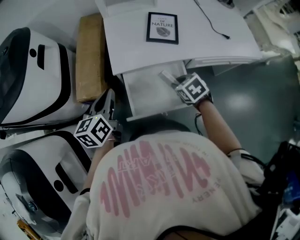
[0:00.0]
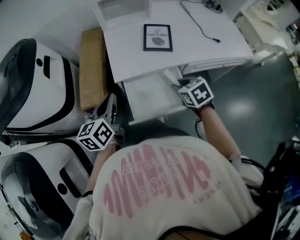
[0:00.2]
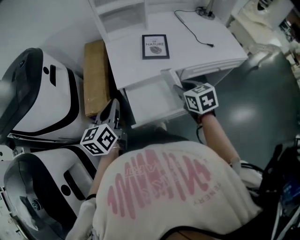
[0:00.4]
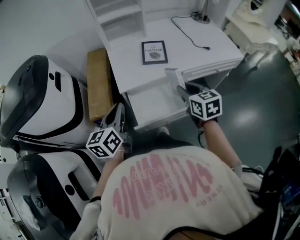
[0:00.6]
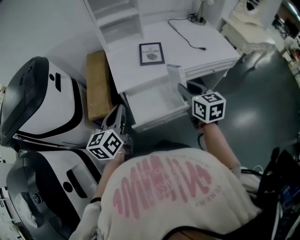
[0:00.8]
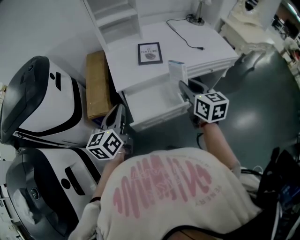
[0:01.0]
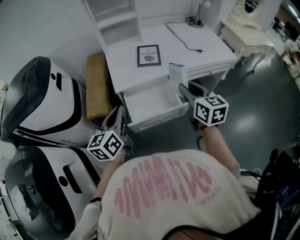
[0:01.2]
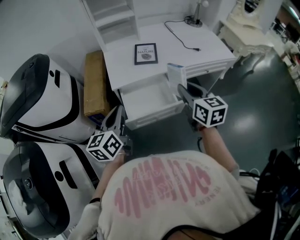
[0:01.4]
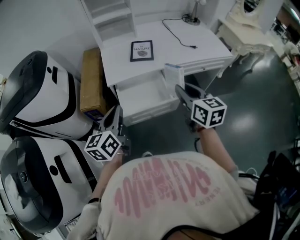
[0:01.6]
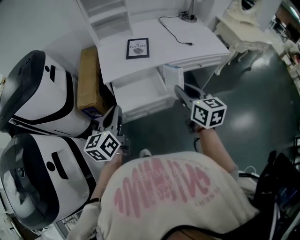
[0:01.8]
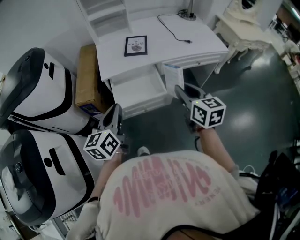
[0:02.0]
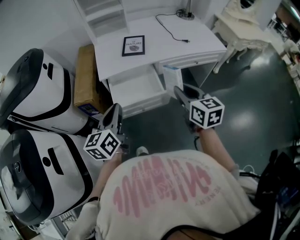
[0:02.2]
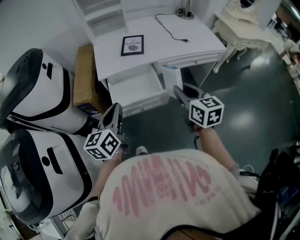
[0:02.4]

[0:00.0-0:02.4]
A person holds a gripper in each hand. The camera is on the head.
0:00.0 to 0:01.2: The left gripper heads backward, upward and to the right, covering about 15 cm, while the right gripper goes approximately 25 cm upward and backward, and tilts its fingers roughly 50 degrees upward.
0:01.2 to 0:02.4: The left gripper shifts about 10 cm to the right and backward. The right gripper travels backward and to the right by some 10 cm.

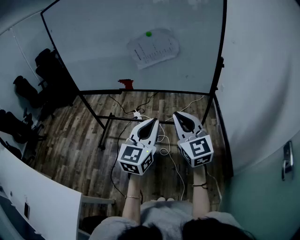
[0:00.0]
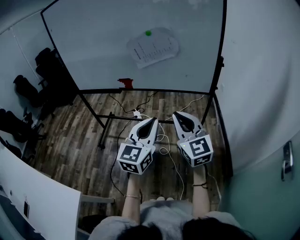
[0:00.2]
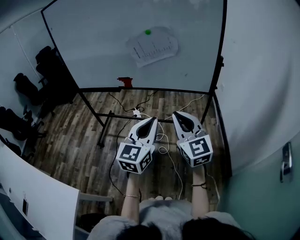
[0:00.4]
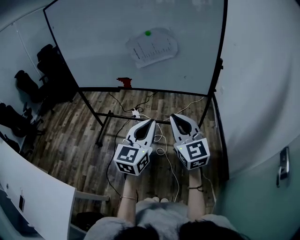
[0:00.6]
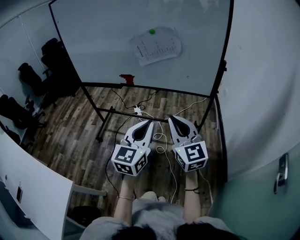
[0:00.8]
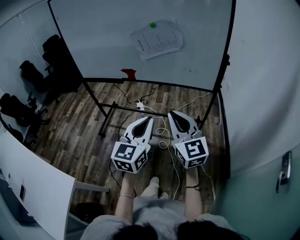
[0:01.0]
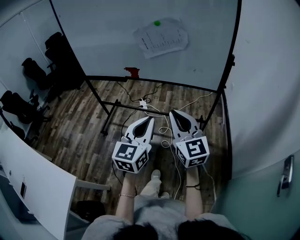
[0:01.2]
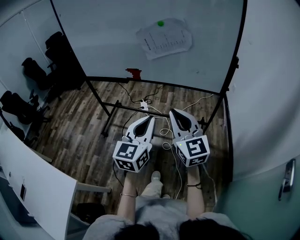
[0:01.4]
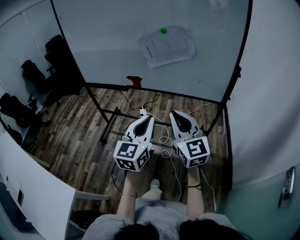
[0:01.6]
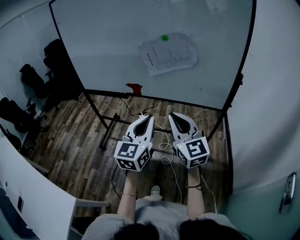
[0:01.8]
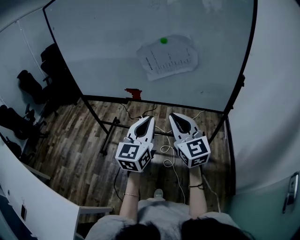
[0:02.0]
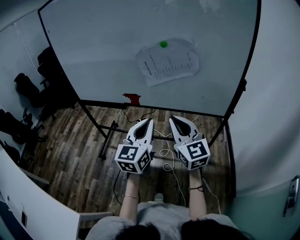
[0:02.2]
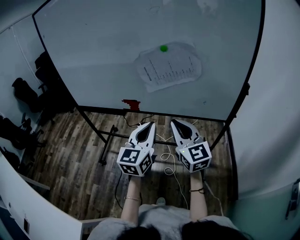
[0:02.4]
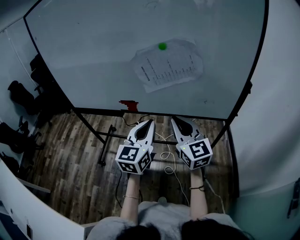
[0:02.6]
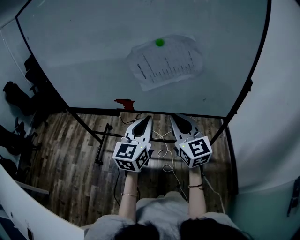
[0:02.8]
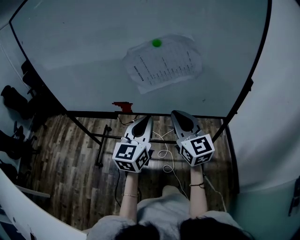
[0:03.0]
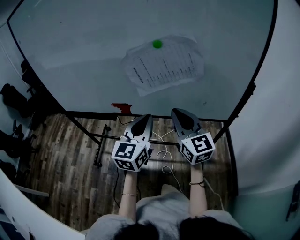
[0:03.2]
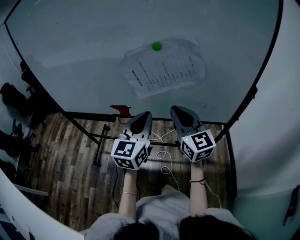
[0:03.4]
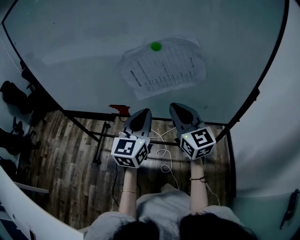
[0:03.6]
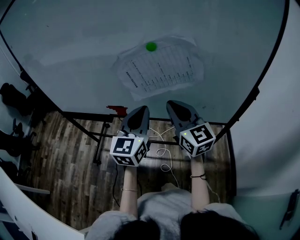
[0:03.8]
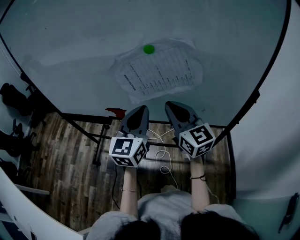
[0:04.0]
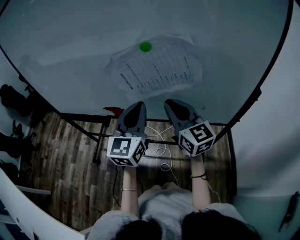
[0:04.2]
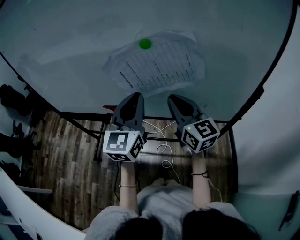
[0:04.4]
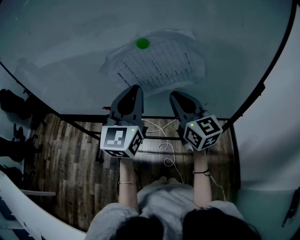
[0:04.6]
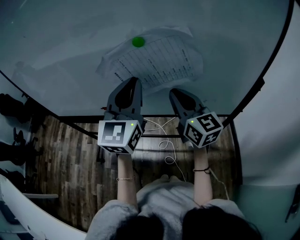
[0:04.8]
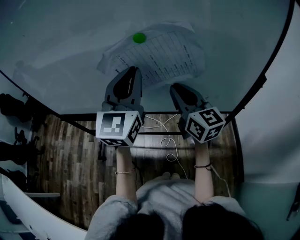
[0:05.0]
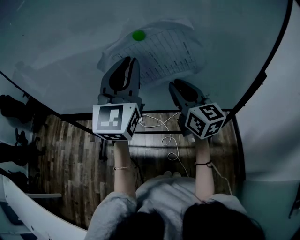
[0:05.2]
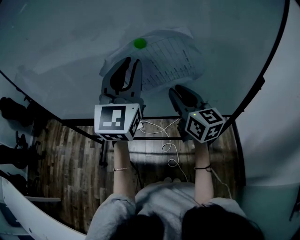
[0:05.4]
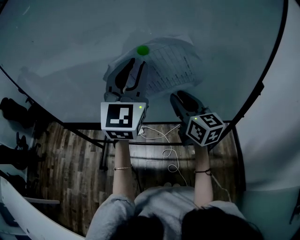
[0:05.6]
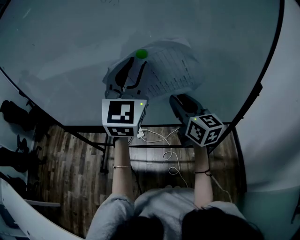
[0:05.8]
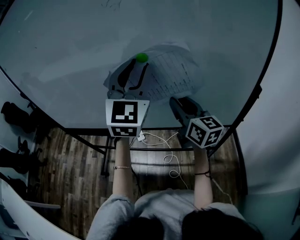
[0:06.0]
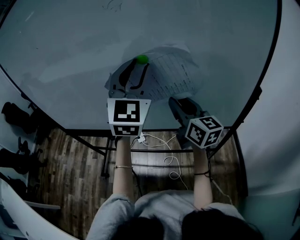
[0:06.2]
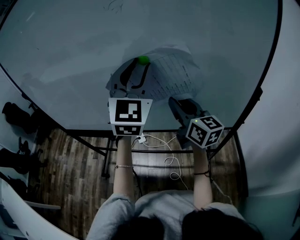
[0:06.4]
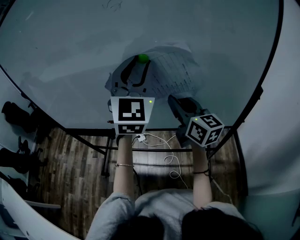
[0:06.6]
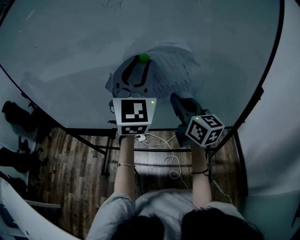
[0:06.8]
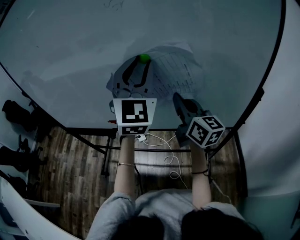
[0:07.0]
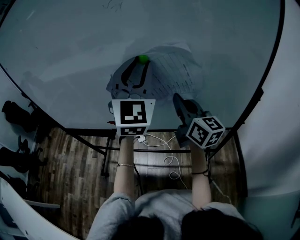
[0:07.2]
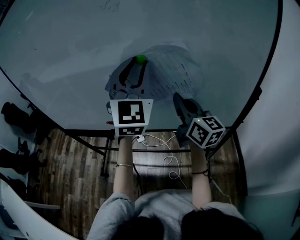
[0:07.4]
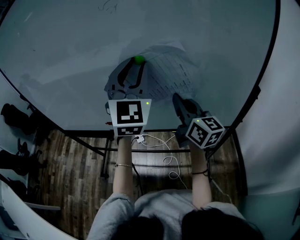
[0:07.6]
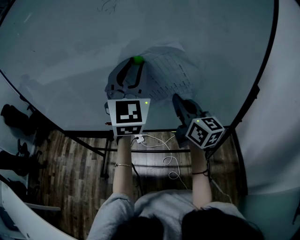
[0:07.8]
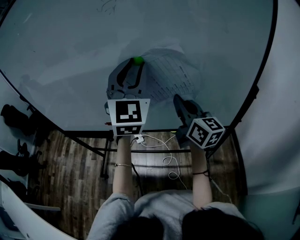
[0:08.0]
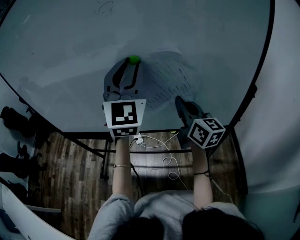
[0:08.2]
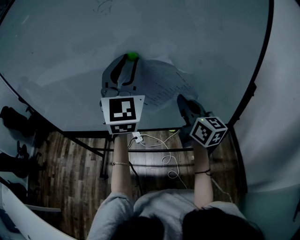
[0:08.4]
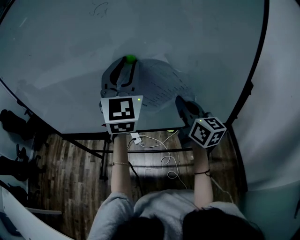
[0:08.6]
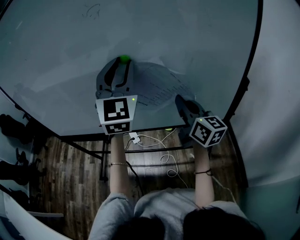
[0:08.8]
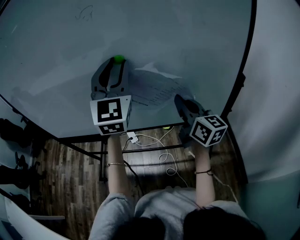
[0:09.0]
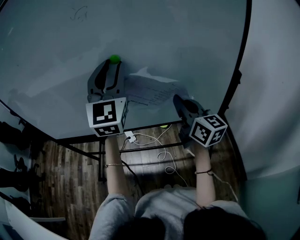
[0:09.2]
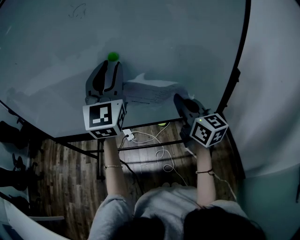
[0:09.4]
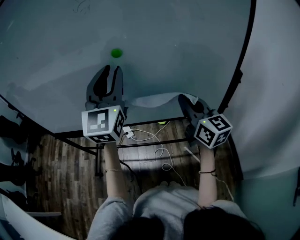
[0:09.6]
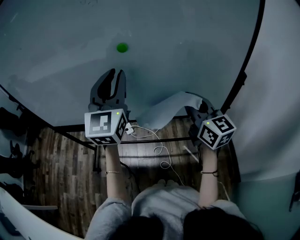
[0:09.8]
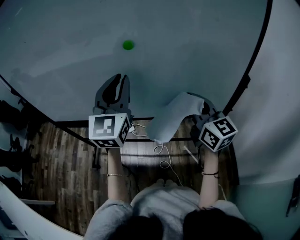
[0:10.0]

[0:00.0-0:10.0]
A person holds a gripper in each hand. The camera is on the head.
0:00.0 to 0:01.4: There are only small adjustments of the grippers.
0:01.4 to 0:02.8: The grippers both shift forward by some 25 cm.
0:02.8 to 0:04.2: Both grippers travel together forward, some 10 cm.
0:04.2 to 0:05.8: The right gripper moves approximately 5 cm, and opens up. Meanwhile the left gripper goes some 15 cm upward and forward, changes its angle by about 30 degrees, and opens up.
0:05.8 to 0:07.2: The right gripper closes up.
0:07.2 to 0:08.6: There are only small adjustments of the grippers.
0:08.6 to 0:10.0: The left gripper moves downward, about 10 cm; the right gripper moves backward, approximately 5 cm.

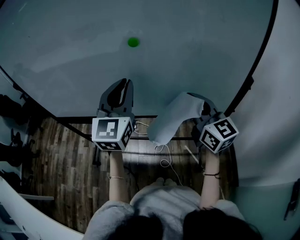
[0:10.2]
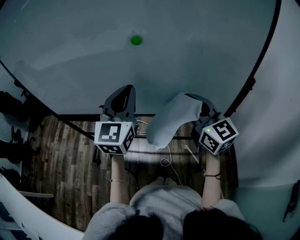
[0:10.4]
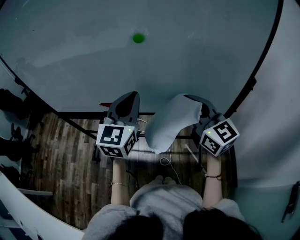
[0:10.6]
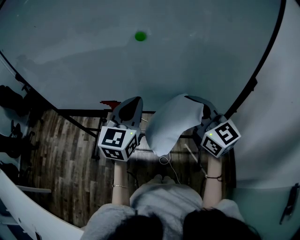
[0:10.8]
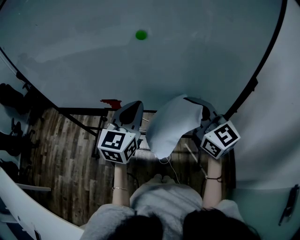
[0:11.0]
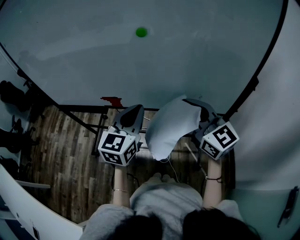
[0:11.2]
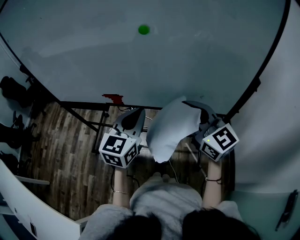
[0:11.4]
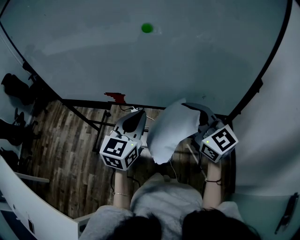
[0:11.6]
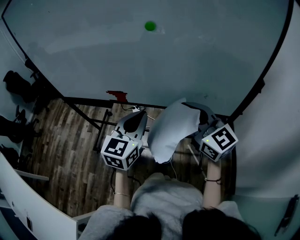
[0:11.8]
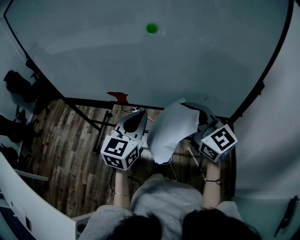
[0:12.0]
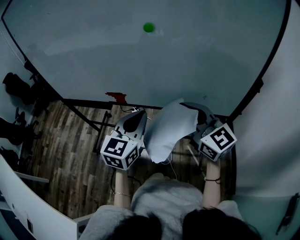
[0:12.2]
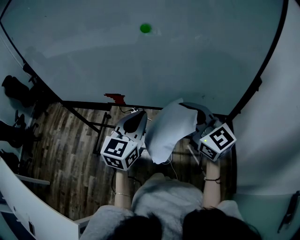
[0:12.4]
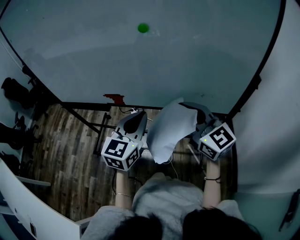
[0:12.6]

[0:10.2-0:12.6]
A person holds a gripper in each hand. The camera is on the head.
0:10.2 to 0:11.4: The right gripper moves backward, about 5 cm, while the left gripper heads downward and backward, covering approximately 15 cm.
0:11.4 to 0:12.6: The grippers move only a little.

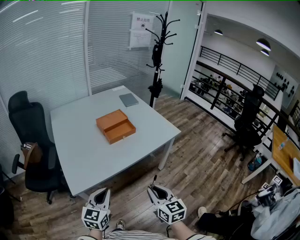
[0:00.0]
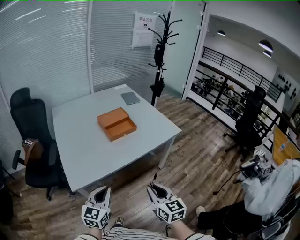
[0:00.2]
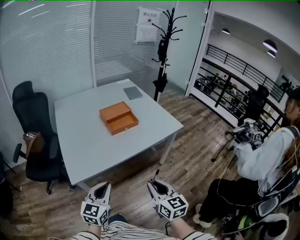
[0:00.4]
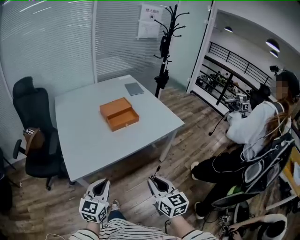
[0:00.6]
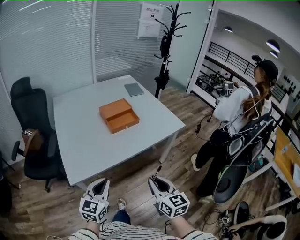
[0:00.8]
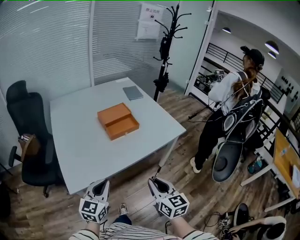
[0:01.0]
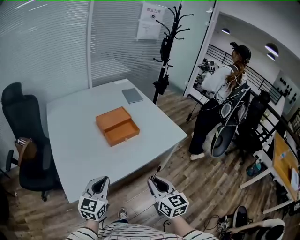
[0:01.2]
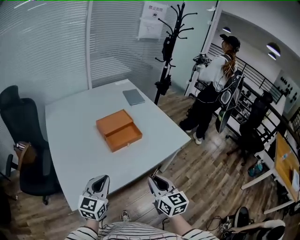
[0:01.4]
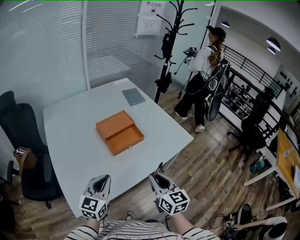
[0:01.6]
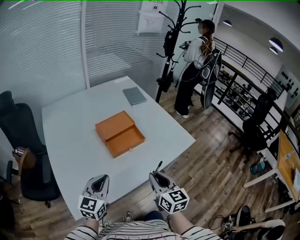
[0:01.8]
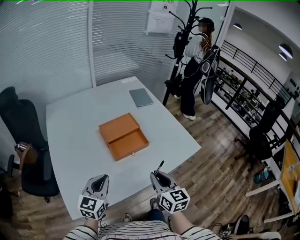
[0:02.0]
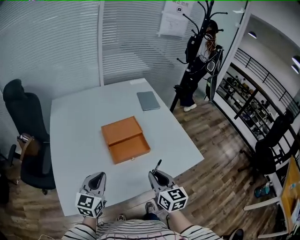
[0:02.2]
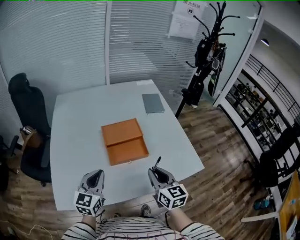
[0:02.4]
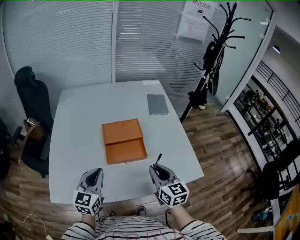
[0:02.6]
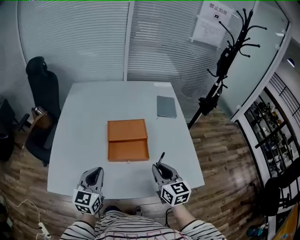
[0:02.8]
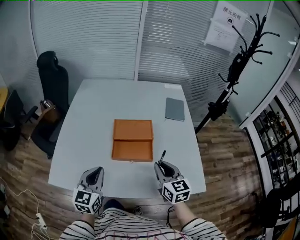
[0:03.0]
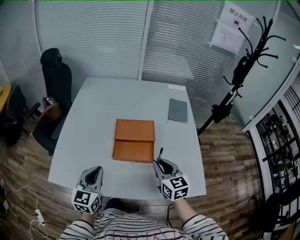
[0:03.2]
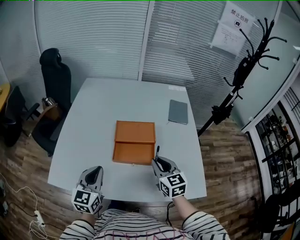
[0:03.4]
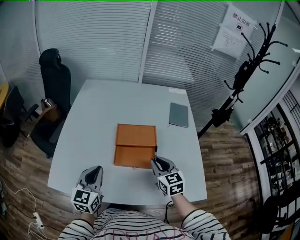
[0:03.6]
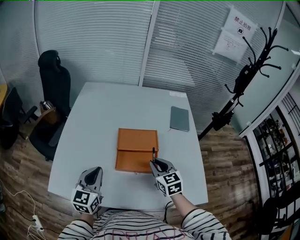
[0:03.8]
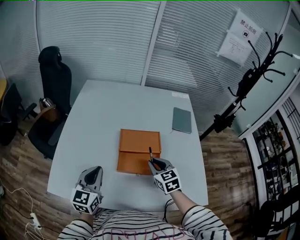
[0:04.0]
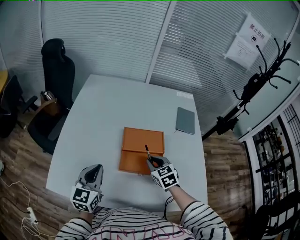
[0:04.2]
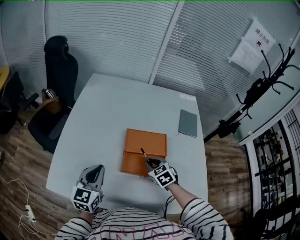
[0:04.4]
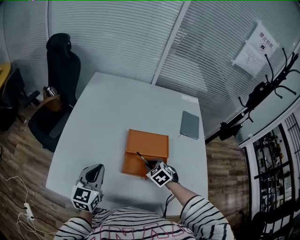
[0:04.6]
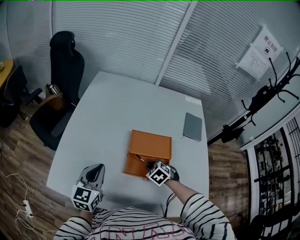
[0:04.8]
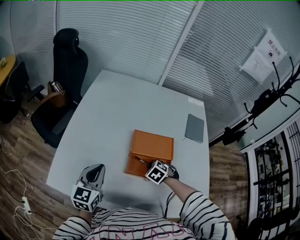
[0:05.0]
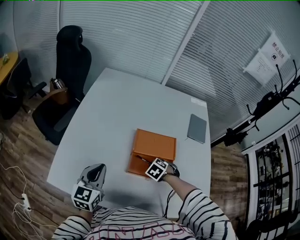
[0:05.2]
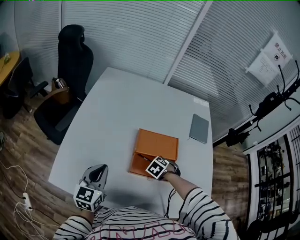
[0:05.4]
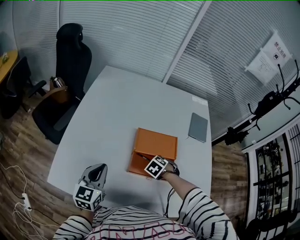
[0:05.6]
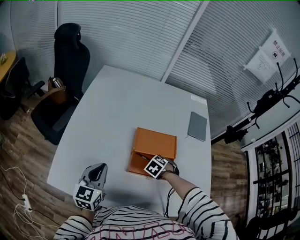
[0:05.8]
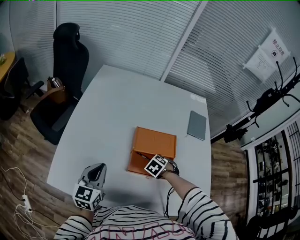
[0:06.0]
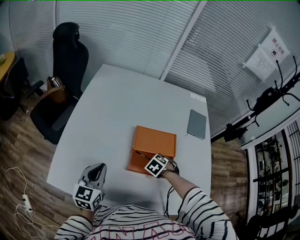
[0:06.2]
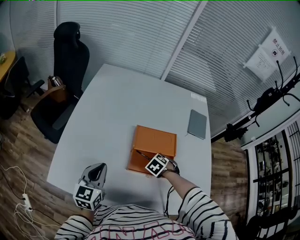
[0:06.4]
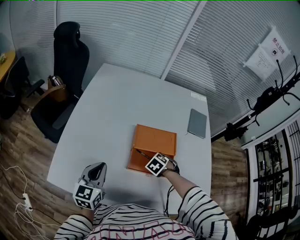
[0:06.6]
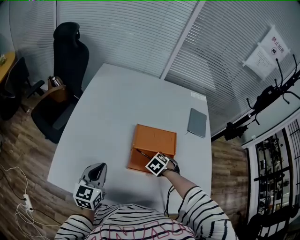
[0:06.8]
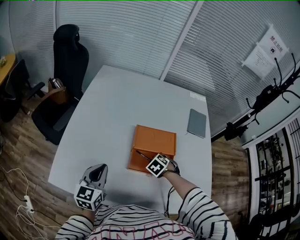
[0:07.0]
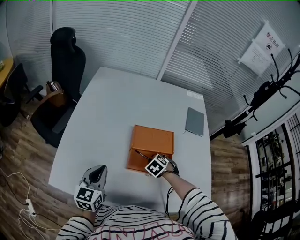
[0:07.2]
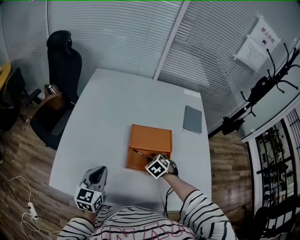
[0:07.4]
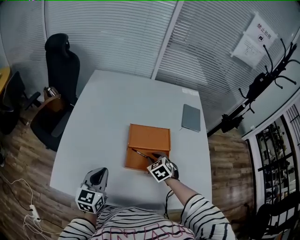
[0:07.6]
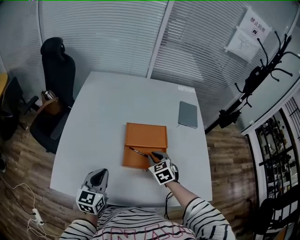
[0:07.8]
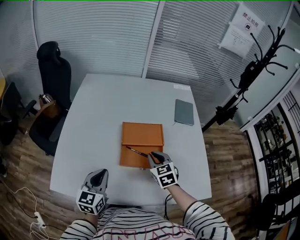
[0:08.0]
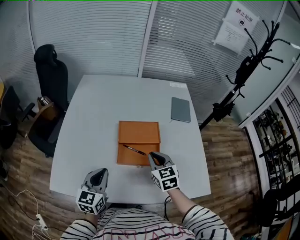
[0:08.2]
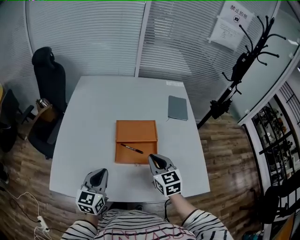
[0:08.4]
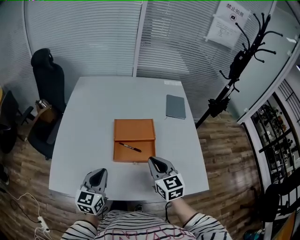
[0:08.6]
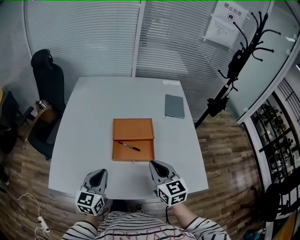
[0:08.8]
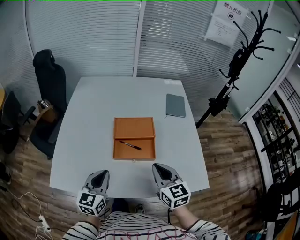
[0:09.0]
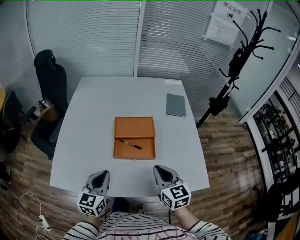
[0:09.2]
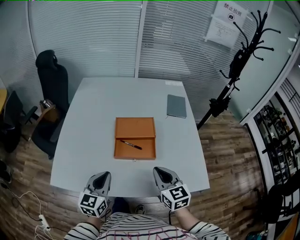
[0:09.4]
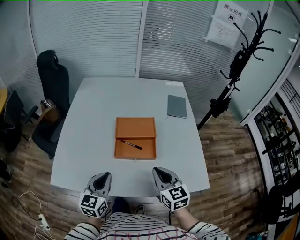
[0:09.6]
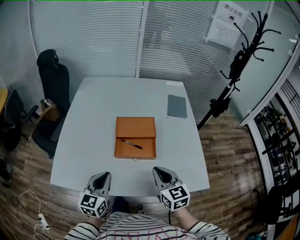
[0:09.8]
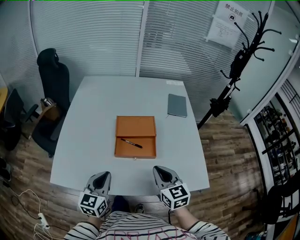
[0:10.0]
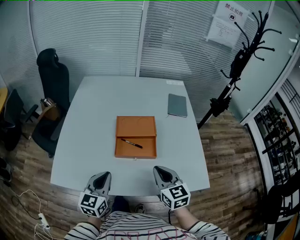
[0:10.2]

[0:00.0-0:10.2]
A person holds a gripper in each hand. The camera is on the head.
0:00.0 to 0:01.4: The grippers both shift forward by some 20 cm.
0:01.4 to 0:03.0: The right gripper moves some 30 cm, and changes its angle by roughly 30 degrees. The left gripper shifts by some 15 cm, and swivels approximately 40 degrees.
0:03.0 to 0:04.4: The right gripper shifts some 20 cm forward, downward and to the left, and tips its fingers downward by some 30 degrees; the left gripper moves forward and to the left, approximately 10 cm.
0:04.4 to 0:05.8: The right gripper goes roughly 10 cm downward, and angles its fingers downward, by some 30 degrees.
0:05.8 to 0:07.2: There are only small adjustments of the grippers.
0:07.2 to 0:08.8: The left gripper travels to the right and backward by roughly 10 cm; the right gripper goes some 25 cm upward and backward, angles its fingers upward, by about 50 degrees, and closes its fingers.
0:08.8 to 0:10.2: The grippers make only small movements.
